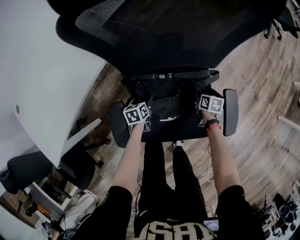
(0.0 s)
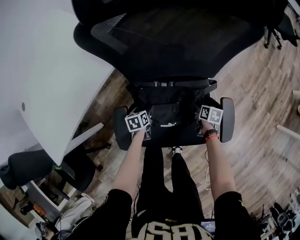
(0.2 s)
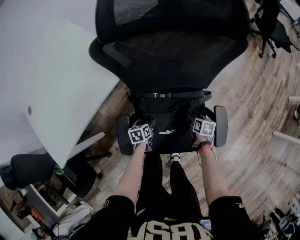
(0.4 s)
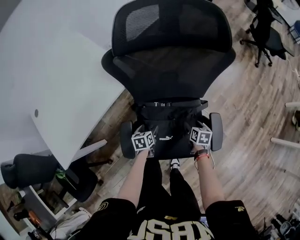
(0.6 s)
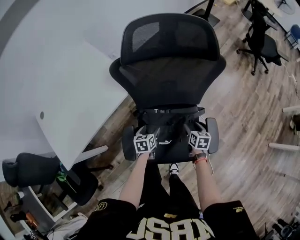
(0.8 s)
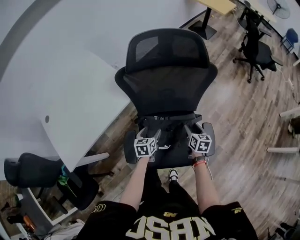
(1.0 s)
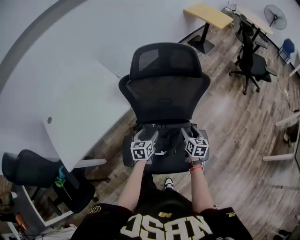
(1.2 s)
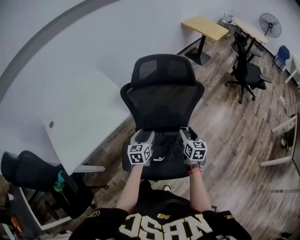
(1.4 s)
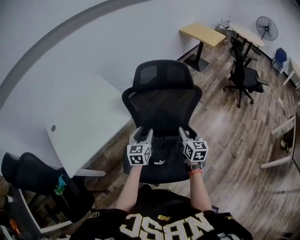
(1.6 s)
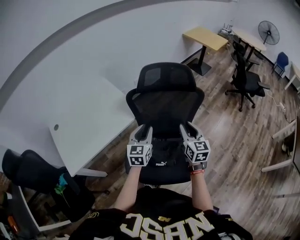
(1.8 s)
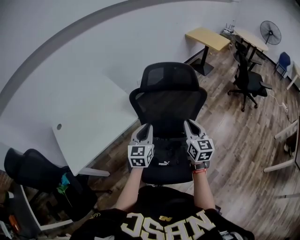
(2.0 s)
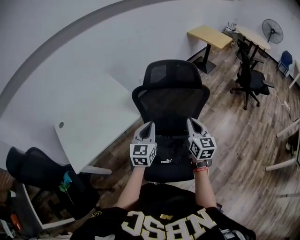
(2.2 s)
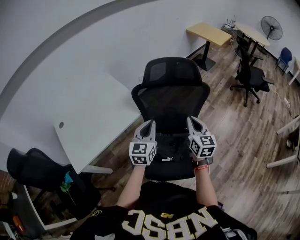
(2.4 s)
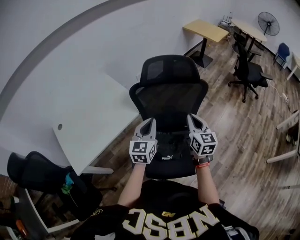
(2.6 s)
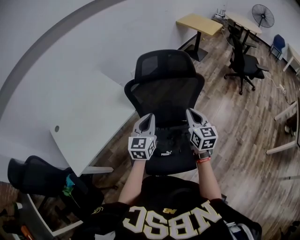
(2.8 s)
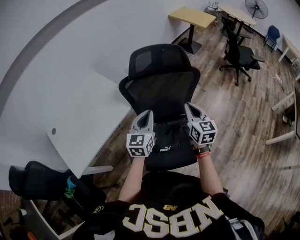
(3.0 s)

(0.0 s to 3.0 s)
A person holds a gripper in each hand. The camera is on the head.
0.0 s - 1.6 s: The grippers both shift upward by about 50 cm. The left gripper angles its fingers upward, by some 40 degrees, while the right gripper tips its fingers upward by approximately 40 degrees, and closes its fingers.
1.6 s - 3.0 s: The grippers both shift upward by roughly 10 cm. The left gripper closes its fingers. The right gripper closes up.

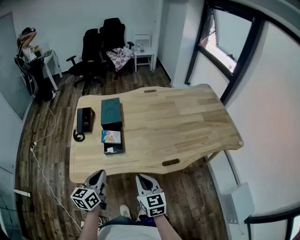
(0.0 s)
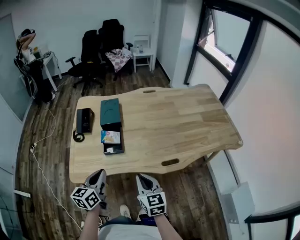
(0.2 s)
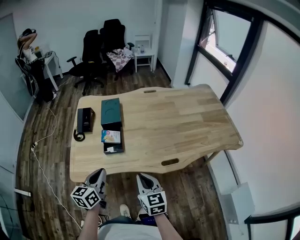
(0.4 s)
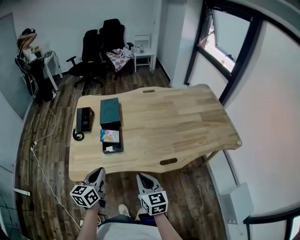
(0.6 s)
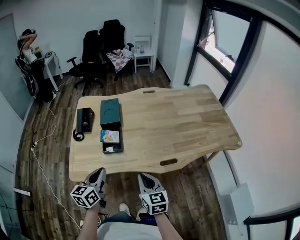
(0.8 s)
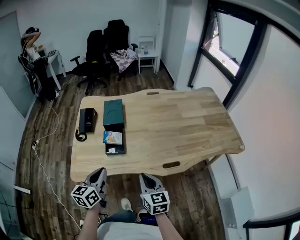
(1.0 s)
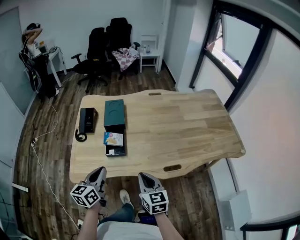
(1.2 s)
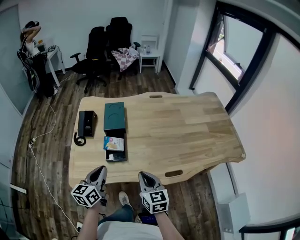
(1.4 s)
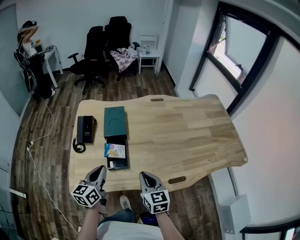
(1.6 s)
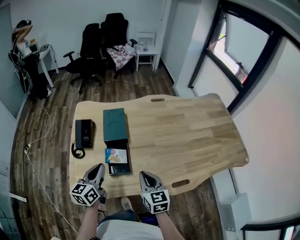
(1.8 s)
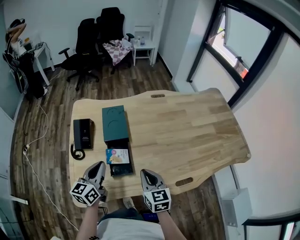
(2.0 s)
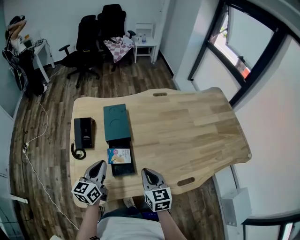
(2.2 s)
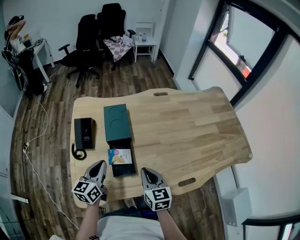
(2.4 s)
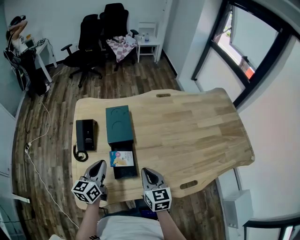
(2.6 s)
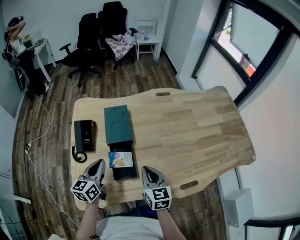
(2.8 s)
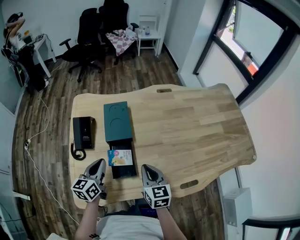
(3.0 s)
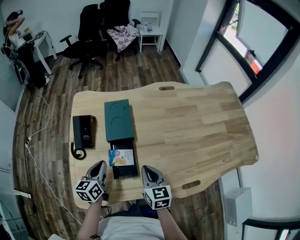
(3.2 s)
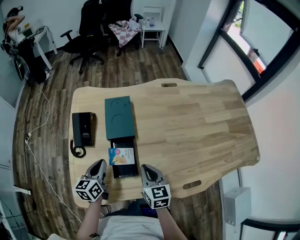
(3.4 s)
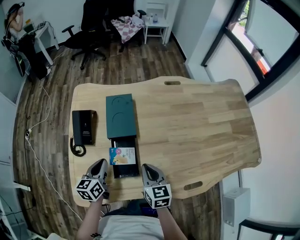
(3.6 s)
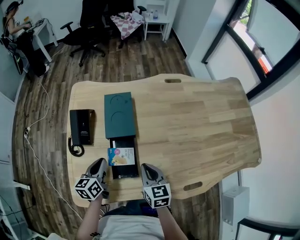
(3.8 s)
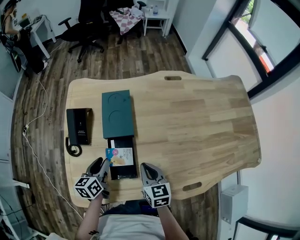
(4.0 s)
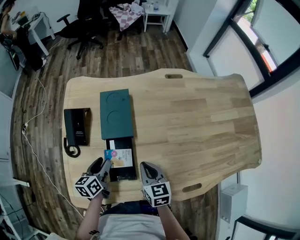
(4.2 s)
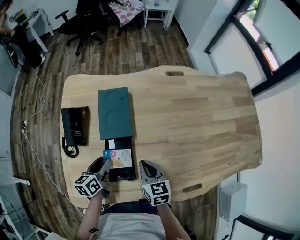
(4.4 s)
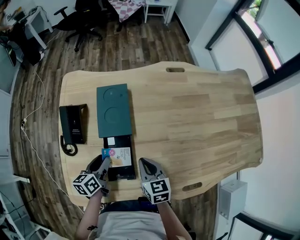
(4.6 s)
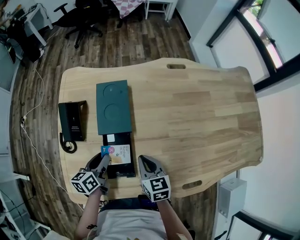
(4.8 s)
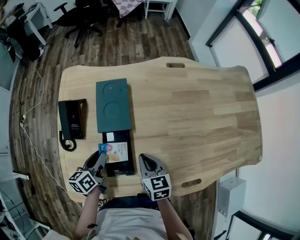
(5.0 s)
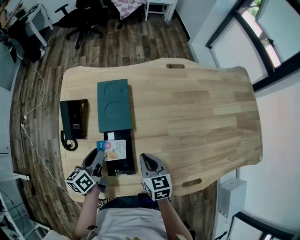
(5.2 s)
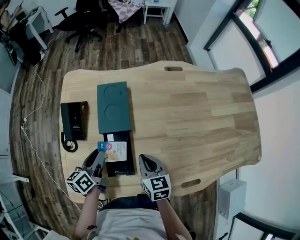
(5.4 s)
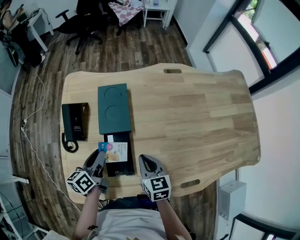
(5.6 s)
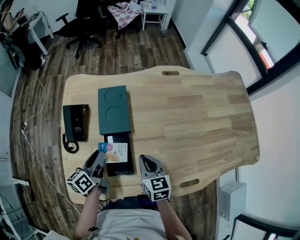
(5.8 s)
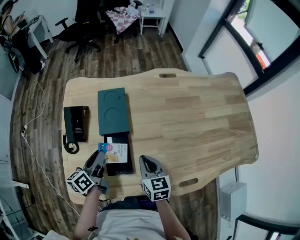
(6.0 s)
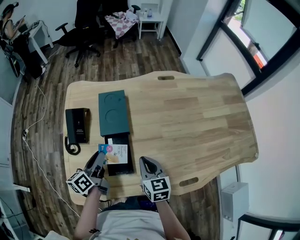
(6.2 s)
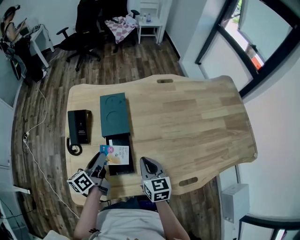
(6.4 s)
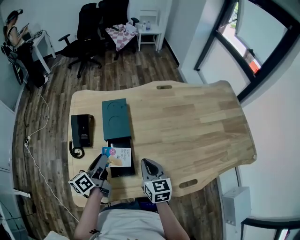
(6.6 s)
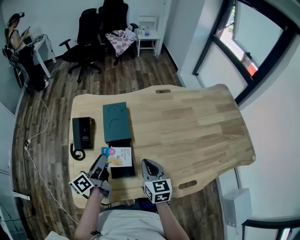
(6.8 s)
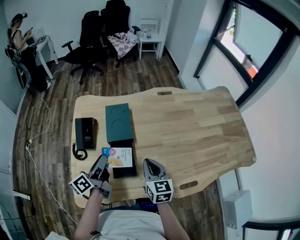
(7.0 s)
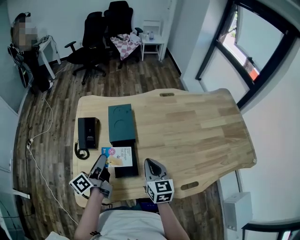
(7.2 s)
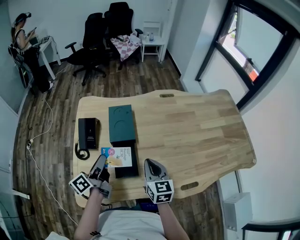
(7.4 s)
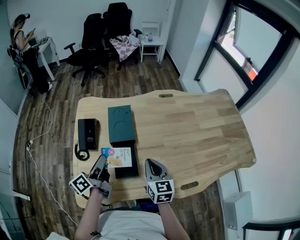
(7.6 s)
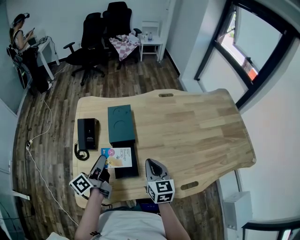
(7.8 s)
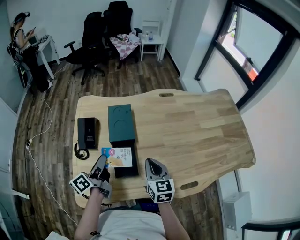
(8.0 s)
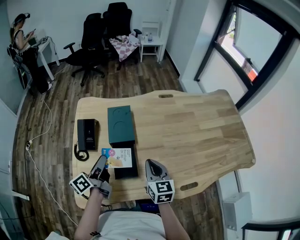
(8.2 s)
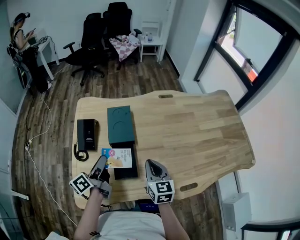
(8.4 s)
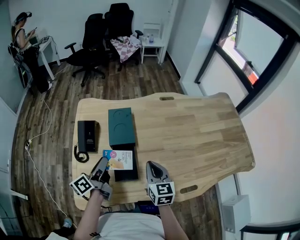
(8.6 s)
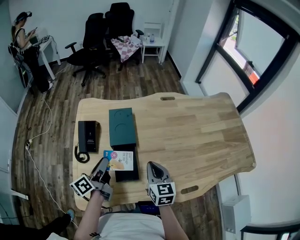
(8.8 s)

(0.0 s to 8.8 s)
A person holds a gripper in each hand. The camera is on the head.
0.0 s - 1.4 s: The grippers both shift forward by approximately 5 cm.
1.4 s - 3.0 s: The left gripper is displaced forward and to the left by about 20 cm; the right gripper heads forward, covering some 15 cm.
3.0 s - 4.4 s: The right gripper shifts about 10 cm downward and forward. Meanwhile the left gripper heads downward, covering approximately 10 cm, swivels some 20 degrees, and opens up.
4.4 s - 5.8 s: The left gripper shifts about 5 cm upward.
5.8 s - 7.4 s: The two grippers go roughly 10 cm upward. The left gripper rotates about 20 degrees.
7.4 s - 8.8 s: The grippers stay close to where they were, moving slightly.

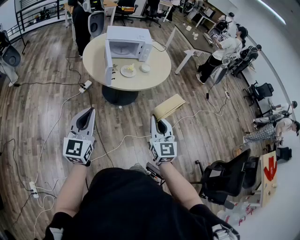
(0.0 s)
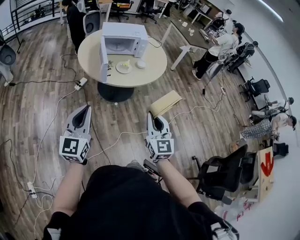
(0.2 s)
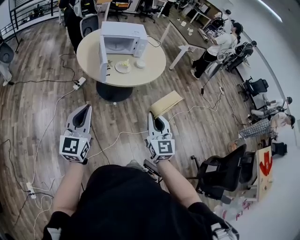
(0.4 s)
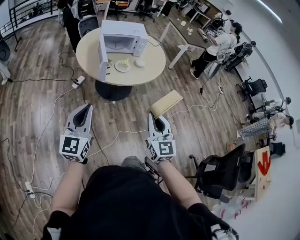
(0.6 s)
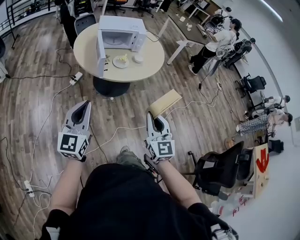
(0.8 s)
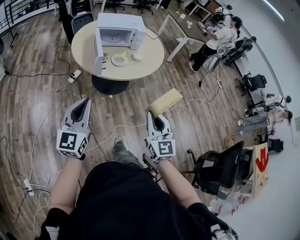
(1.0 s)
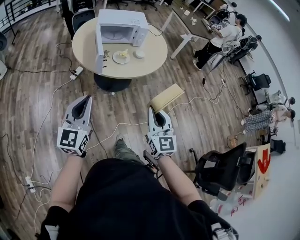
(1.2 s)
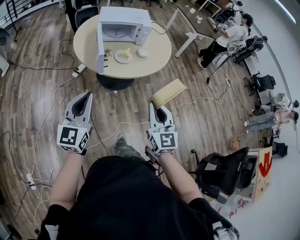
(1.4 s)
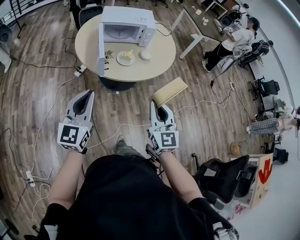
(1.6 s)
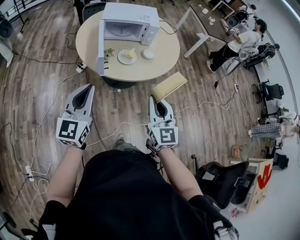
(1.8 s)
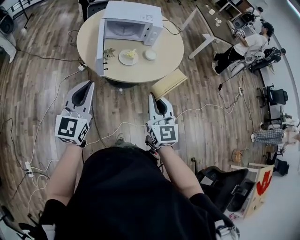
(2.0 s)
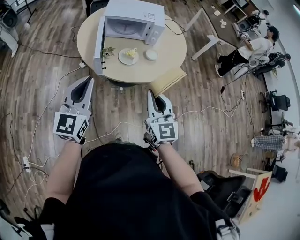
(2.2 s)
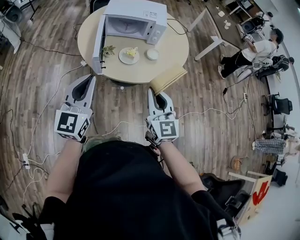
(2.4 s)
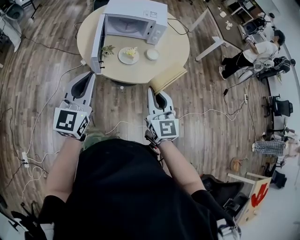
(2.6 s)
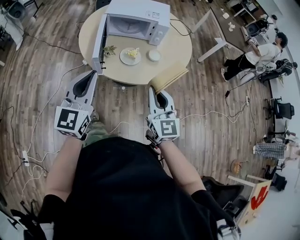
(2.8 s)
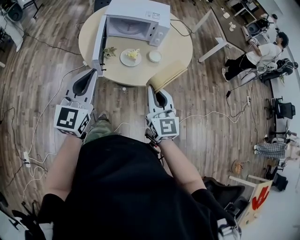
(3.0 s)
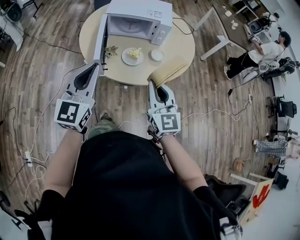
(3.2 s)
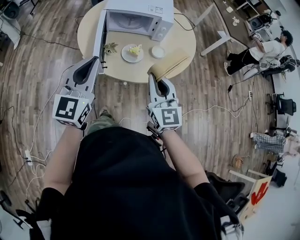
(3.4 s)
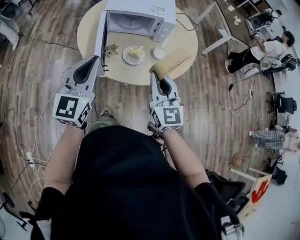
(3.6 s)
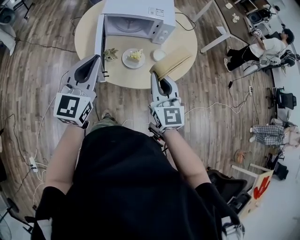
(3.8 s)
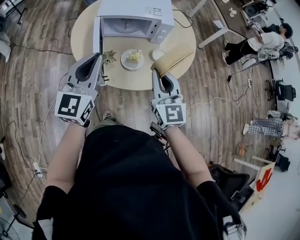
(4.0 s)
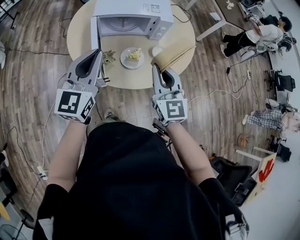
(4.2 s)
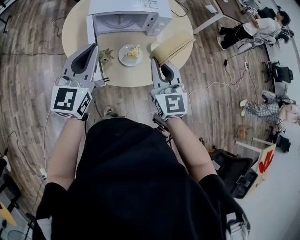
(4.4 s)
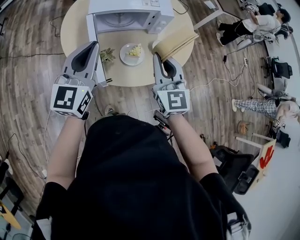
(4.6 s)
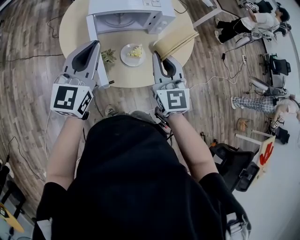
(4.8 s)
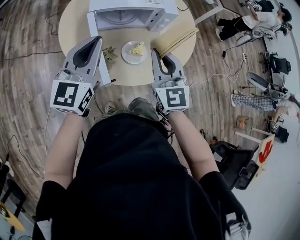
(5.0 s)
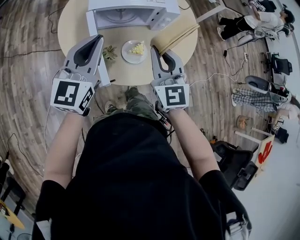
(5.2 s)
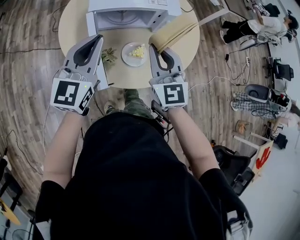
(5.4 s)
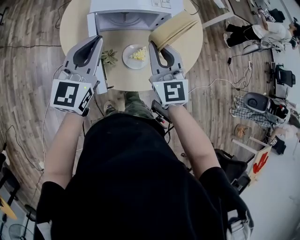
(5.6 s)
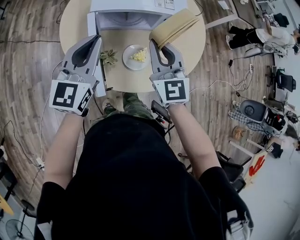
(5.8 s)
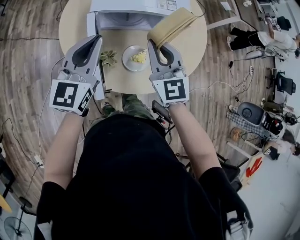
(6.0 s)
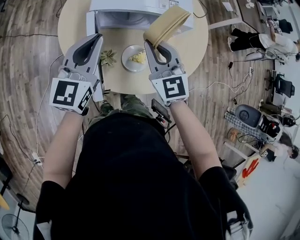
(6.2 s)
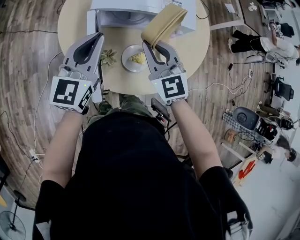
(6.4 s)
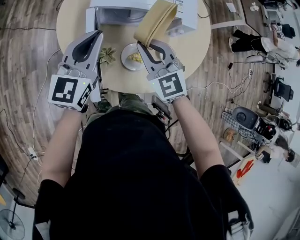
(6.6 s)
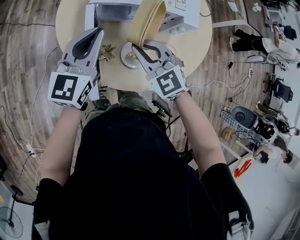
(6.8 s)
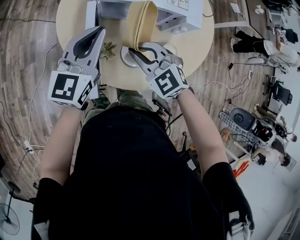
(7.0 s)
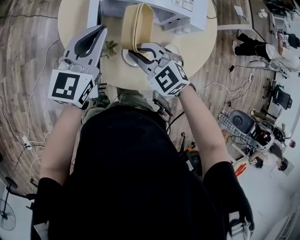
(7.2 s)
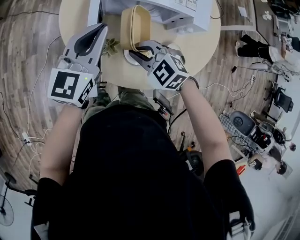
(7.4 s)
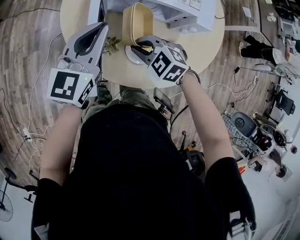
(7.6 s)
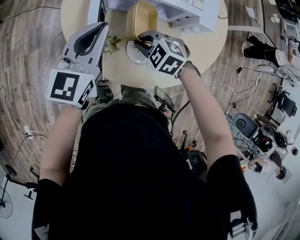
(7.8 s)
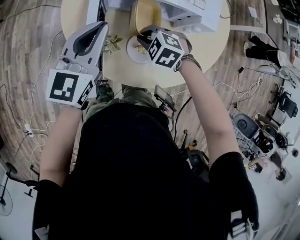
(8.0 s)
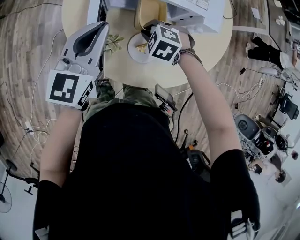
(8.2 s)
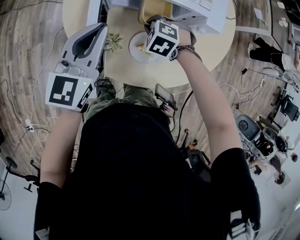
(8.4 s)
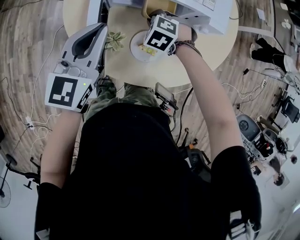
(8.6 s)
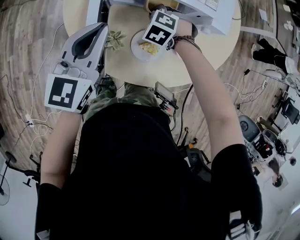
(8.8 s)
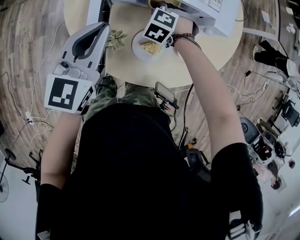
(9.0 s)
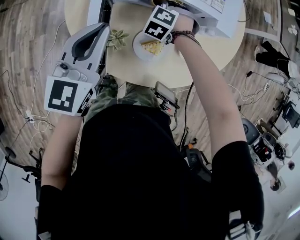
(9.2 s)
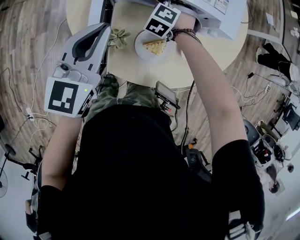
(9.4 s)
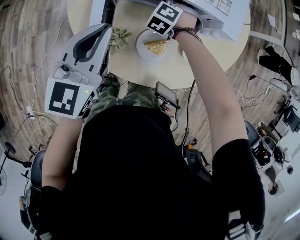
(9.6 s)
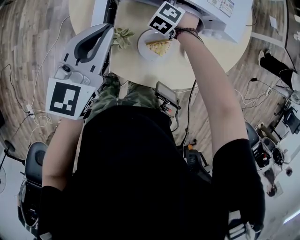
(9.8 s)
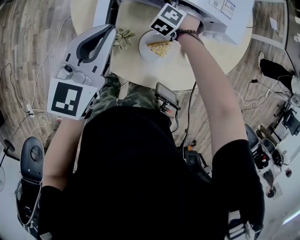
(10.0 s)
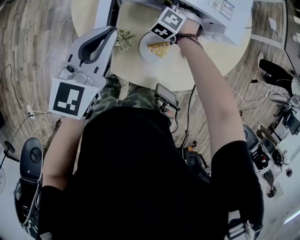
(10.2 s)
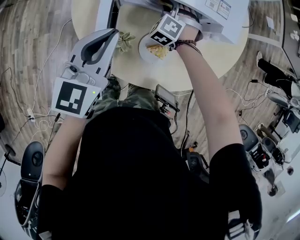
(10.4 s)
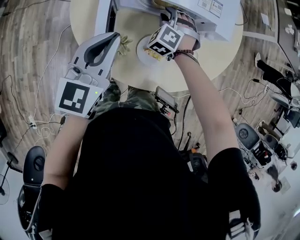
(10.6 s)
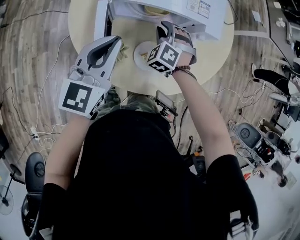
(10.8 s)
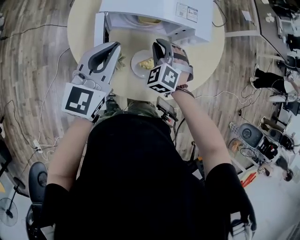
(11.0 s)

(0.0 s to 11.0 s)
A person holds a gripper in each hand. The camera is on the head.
0.0 s - 1.6 s: The two grippers go approximately 15 cm forward.
1.6 s - 3.2 s: The left gripper shifts approximately 20 cm forward and to the right; the right gripper heads forward, covering roughly 20 cm.
3.2 s - 4.8 s: The left gripper moves forward, some 20 cm; the right gripper moves forward and to the left, approximately 20 cm.
4.8 s - 6.2 s: The right gripper goes some 10 cm forward, and rotates approximately 20 degrees, while the left gripper heads forward and downward, covering about 10 cm.
6.2 s - 7.8 s: The left gripper changes place by roughly 5 cm. The right gripper is displaced downward by some 20 cm, and tips its fingers downward by approximately 40 degrees.
7.8 s - 9.4 s: The right gripper changes place by roughly 20 cm, and rotates some 30 degrees.
9.4 s - 11.0 s: The right gripper travels upward and backward by approximately 15 cm, and turns by some 20 degrees.

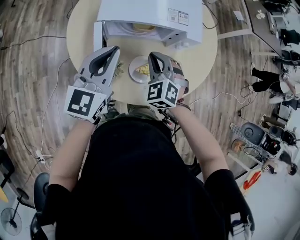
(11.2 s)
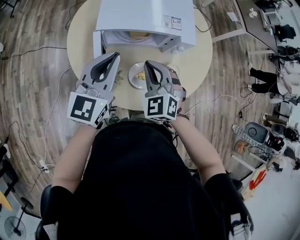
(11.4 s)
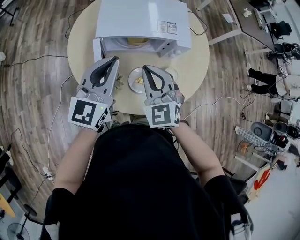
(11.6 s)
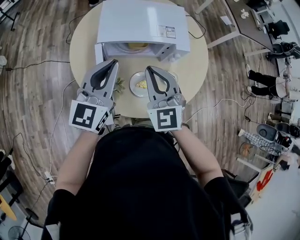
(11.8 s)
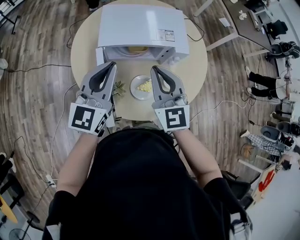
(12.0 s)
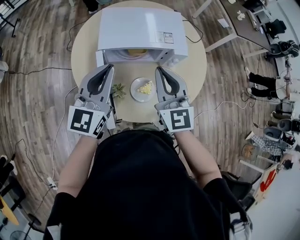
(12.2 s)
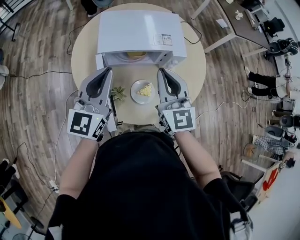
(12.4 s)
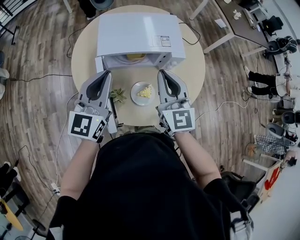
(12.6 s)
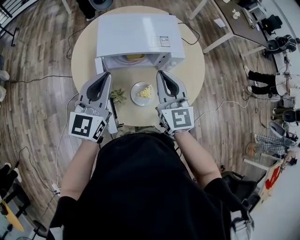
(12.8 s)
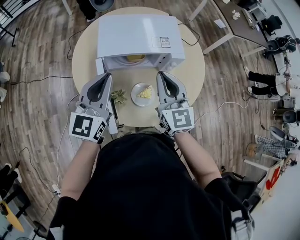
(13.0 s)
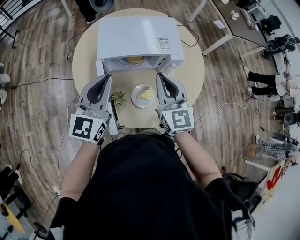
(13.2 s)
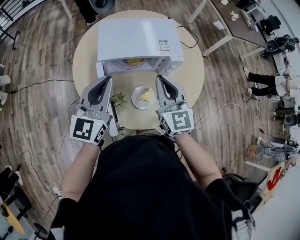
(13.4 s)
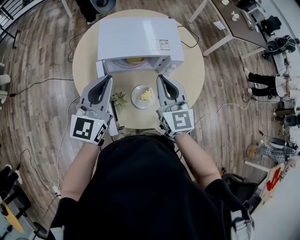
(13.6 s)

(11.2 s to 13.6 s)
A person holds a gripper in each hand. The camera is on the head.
11.2 s - 12.4 s: The left gripper travels upward by about 5 cm. Meanwhile the right gripper moves upward, approximately 15 cm, and tips its fingers upward by roughly 30 degrees.
12.4 s - 13.6 s: There are only small adjustments of the grippers.
